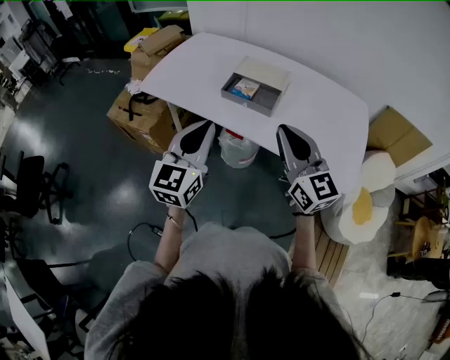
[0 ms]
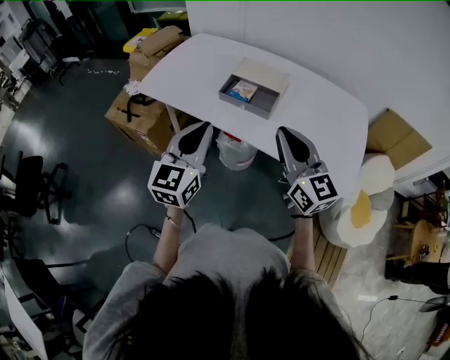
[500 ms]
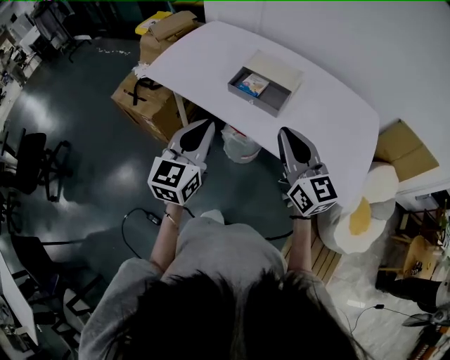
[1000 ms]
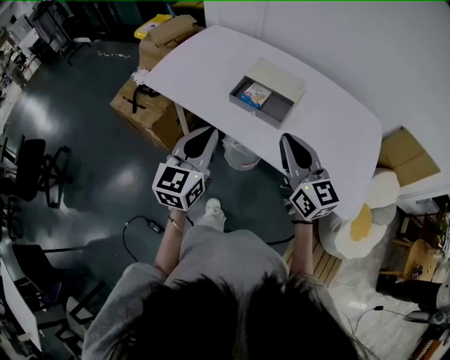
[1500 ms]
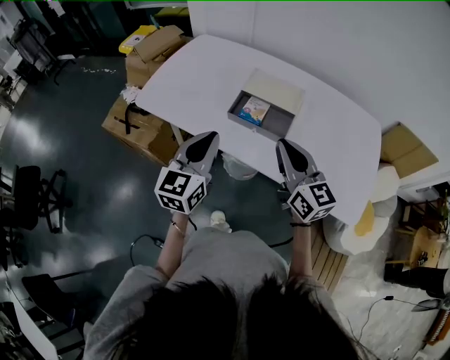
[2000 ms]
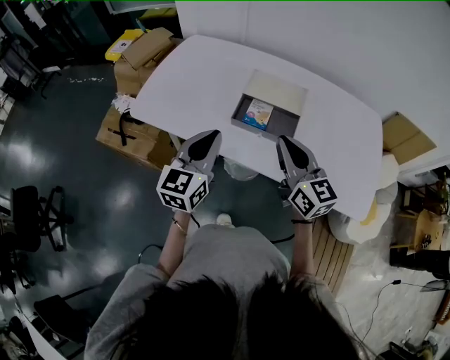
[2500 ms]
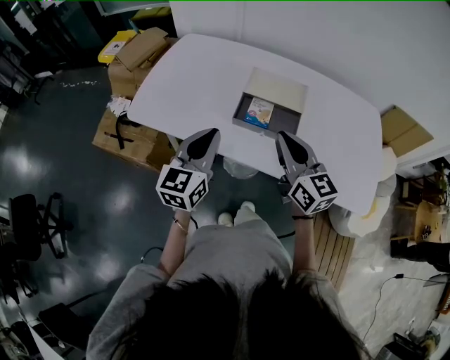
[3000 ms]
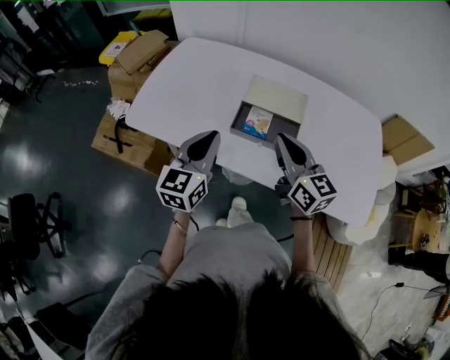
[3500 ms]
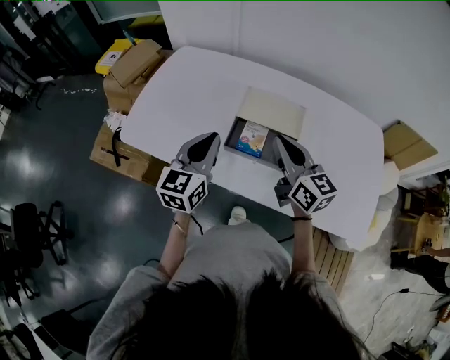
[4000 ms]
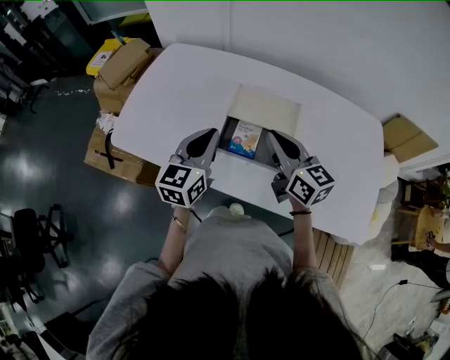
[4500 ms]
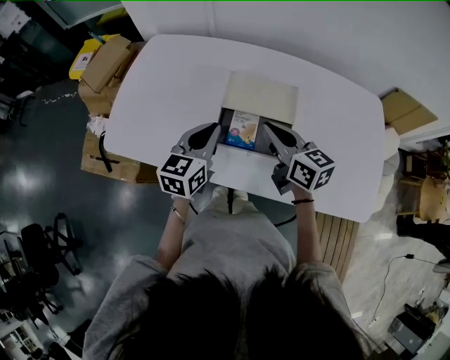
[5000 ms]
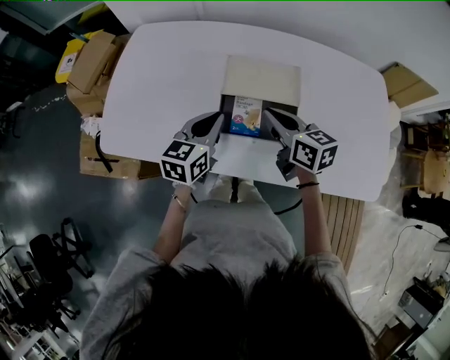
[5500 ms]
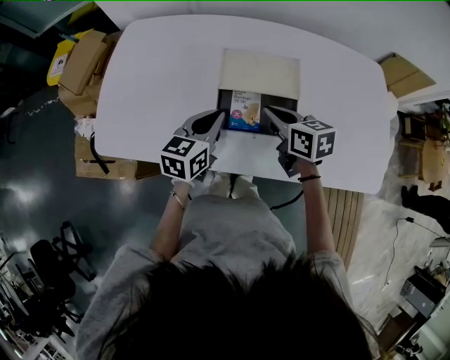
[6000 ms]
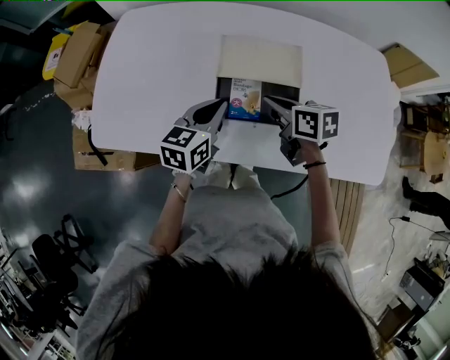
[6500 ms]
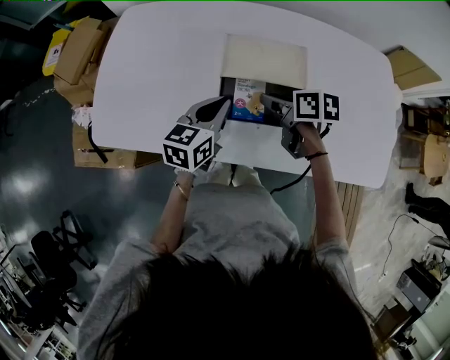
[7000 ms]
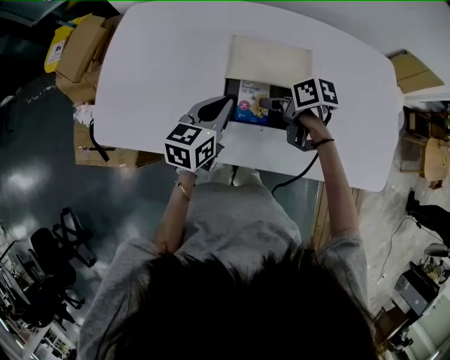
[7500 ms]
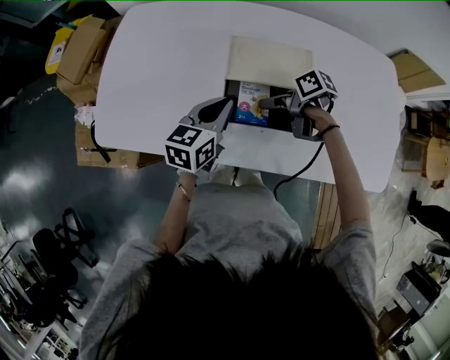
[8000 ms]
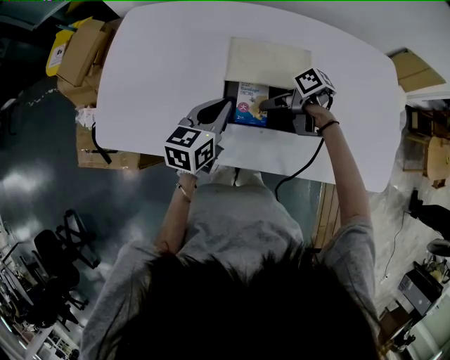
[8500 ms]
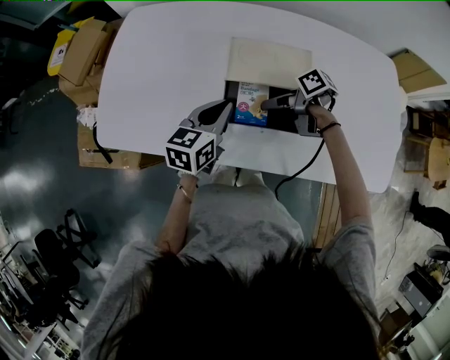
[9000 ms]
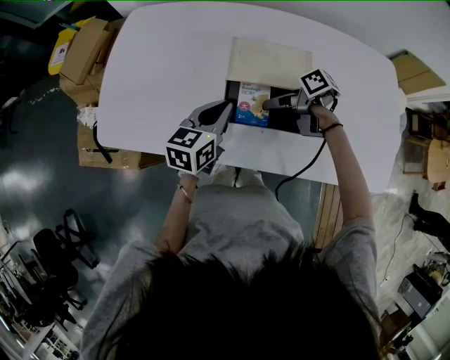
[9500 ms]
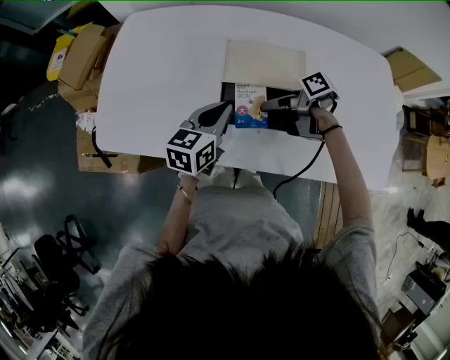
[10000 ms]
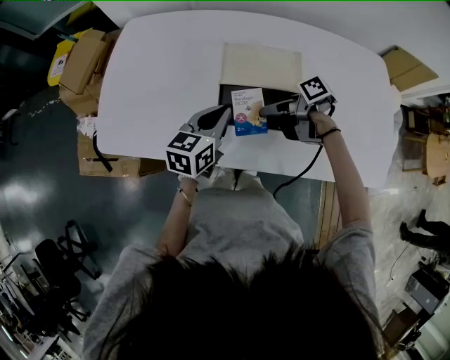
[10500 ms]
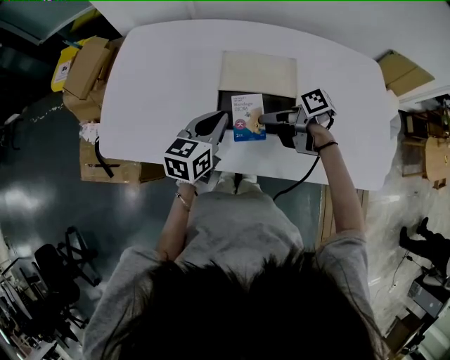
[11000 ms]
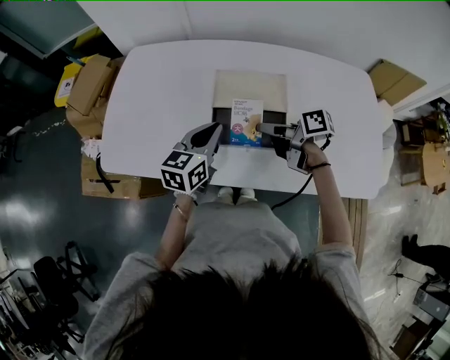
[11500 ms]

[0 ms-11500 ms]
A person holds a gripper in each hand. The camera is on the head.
0 ms to 2000 ms: Both grippers move forward, about 15 cm.
2000 ms to 4000 ms: Both grippers travel together forward, roughly 15 cm.
4000 ms to 6000 ms: The two grippers go some 15 cm downward and forward. The left gripper turns by approximately 30 degrees; the right gripper swivels approximately 30 degrees.
6000 ms to 7500 ms: The right gripper shifts some 5 cm downward, rotates approximately 40 degrees, and opens its fingers.
7500 ms to 9500 ms: The right gripper rotates roughly 20 degrees, and closes up.
9500 ms to 11500 ms: The right gripper shifts some 5 cm upward, and turns by roughly 30 degrees.

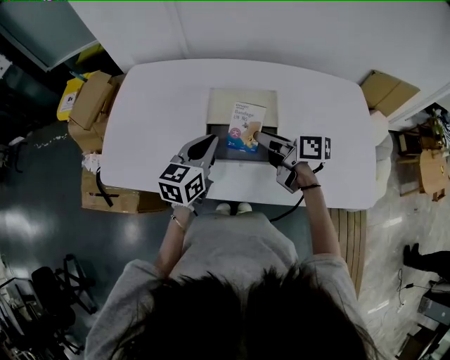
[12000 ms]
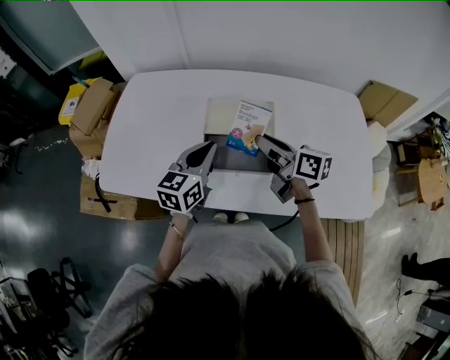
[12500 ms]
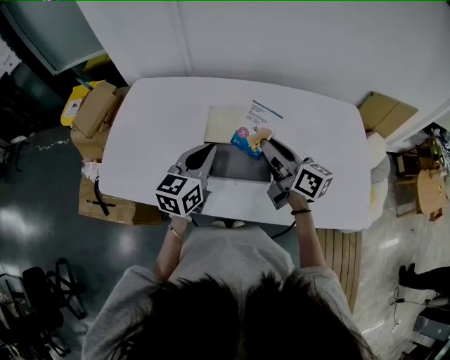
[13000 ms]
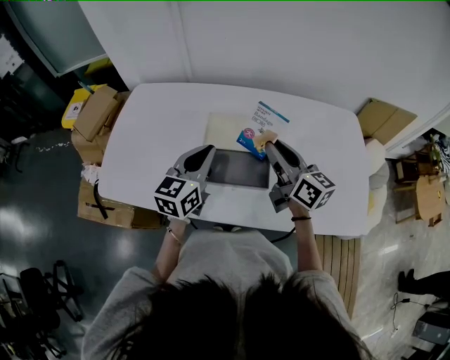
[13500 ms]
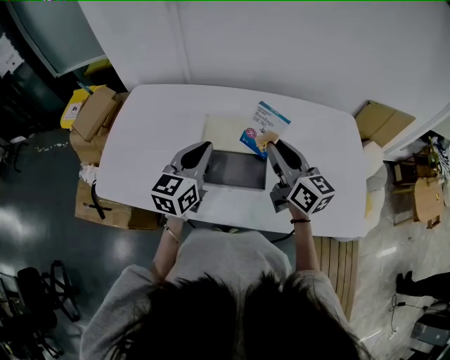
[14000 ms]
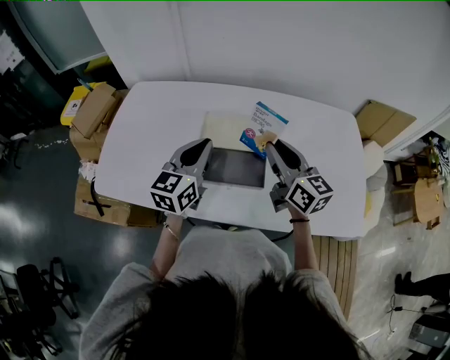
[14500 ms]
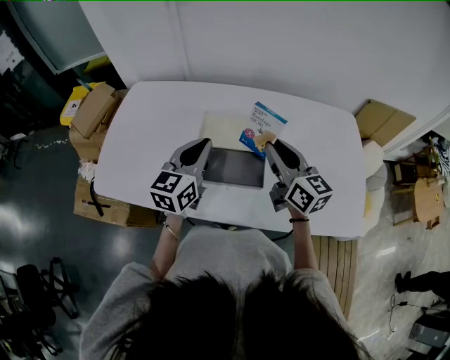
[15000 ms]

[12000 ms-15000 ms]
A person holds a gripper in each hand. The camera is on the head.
12000 ms to 13500 ms: The left gripper moves some 5 cm; the right gripper moves upward and to the right, roughly 10 cm, and swivels some 40 degrees.
13500 ms to 15000 ms: The grippers move only a little.

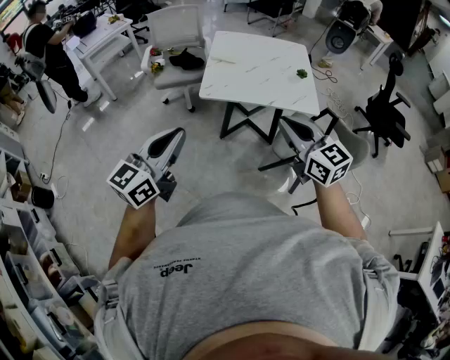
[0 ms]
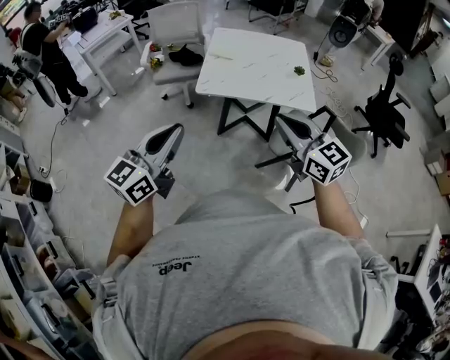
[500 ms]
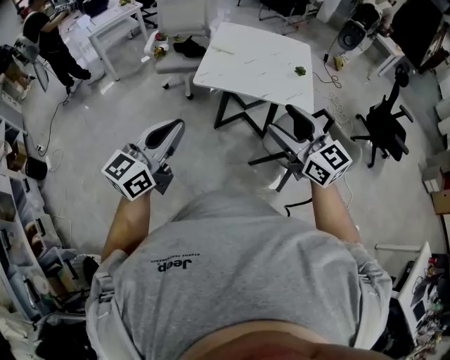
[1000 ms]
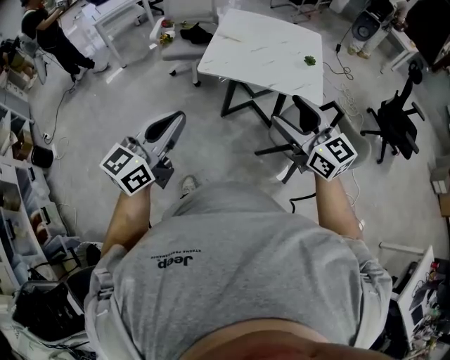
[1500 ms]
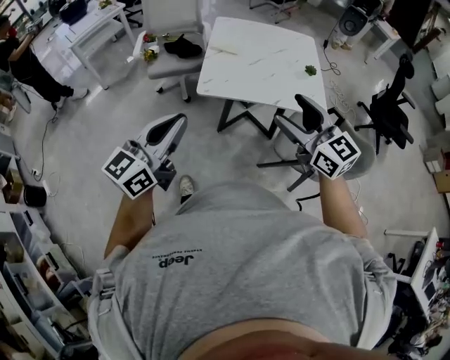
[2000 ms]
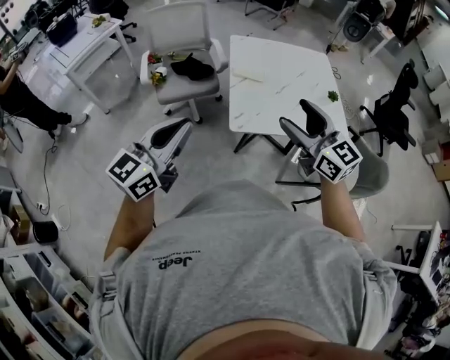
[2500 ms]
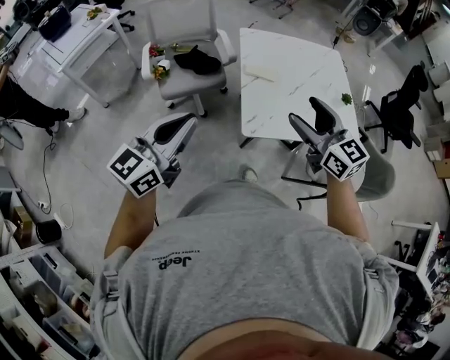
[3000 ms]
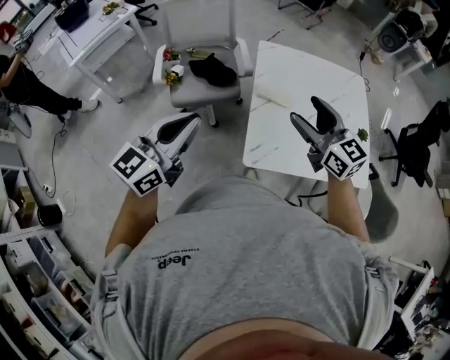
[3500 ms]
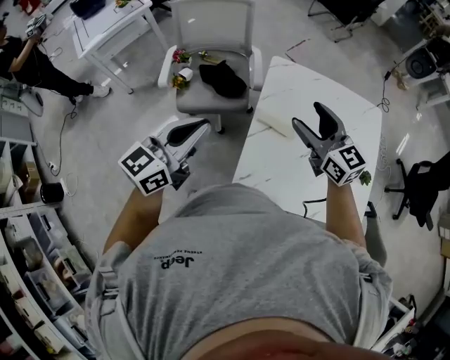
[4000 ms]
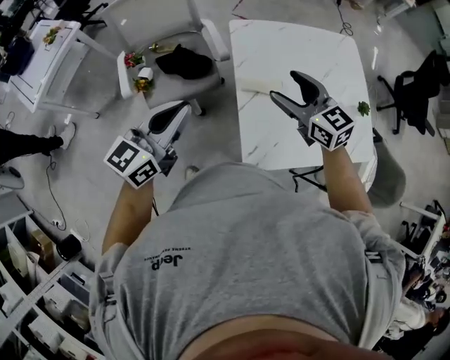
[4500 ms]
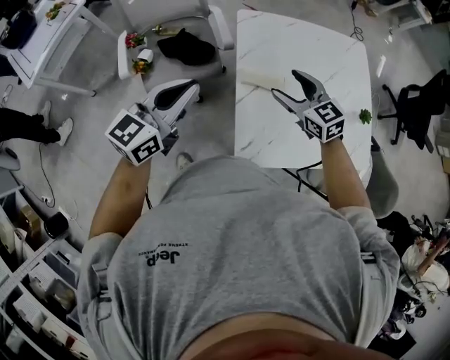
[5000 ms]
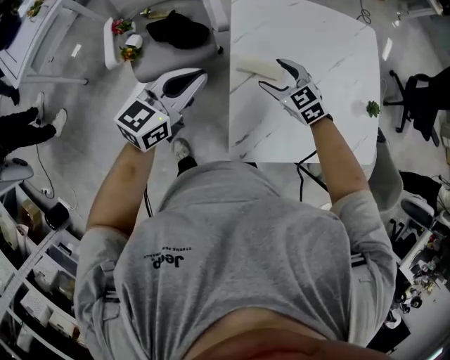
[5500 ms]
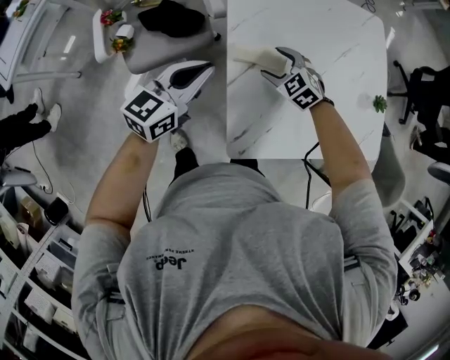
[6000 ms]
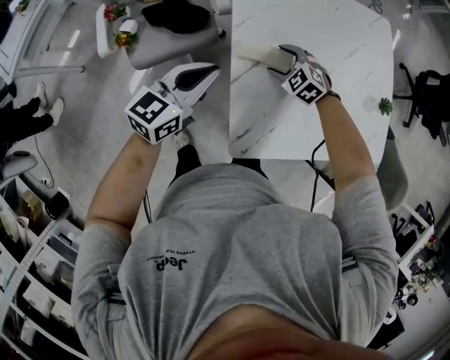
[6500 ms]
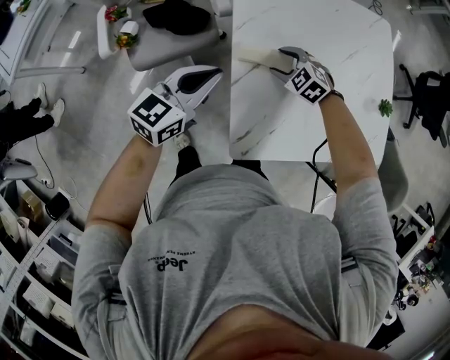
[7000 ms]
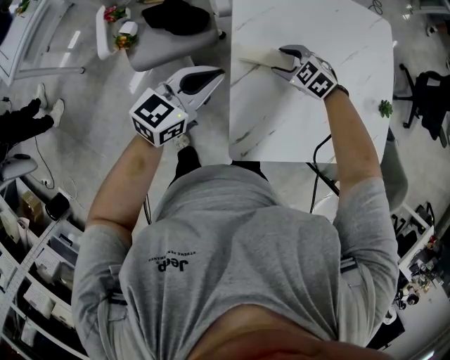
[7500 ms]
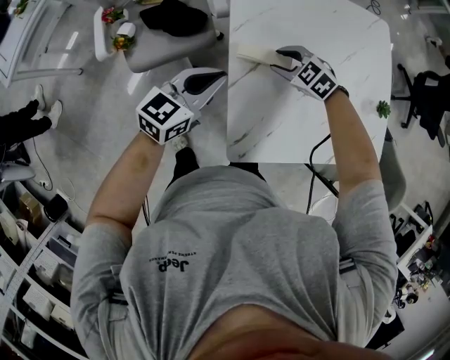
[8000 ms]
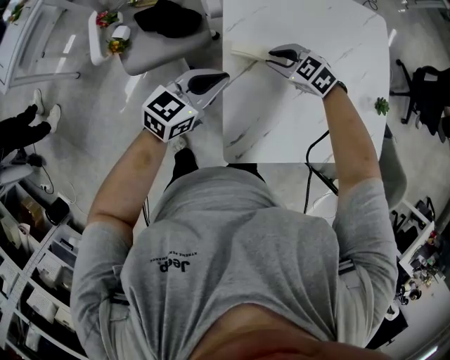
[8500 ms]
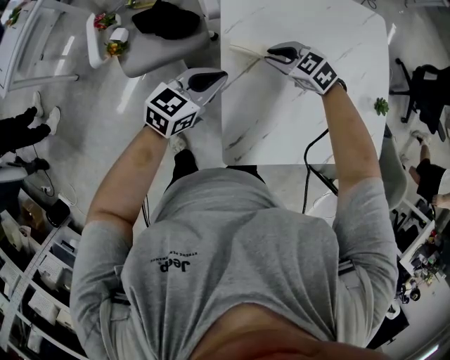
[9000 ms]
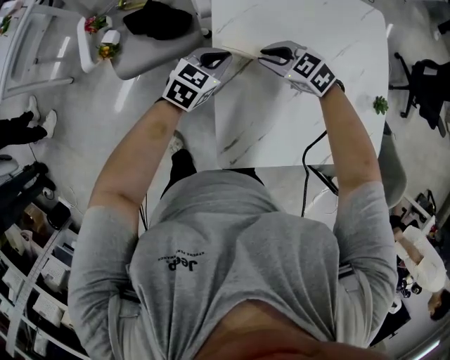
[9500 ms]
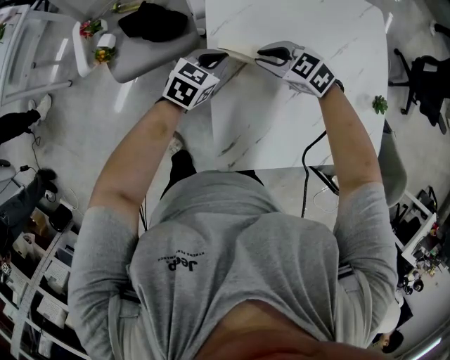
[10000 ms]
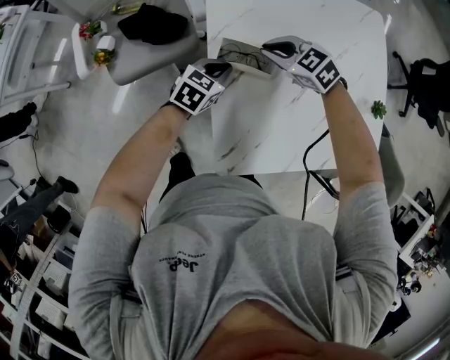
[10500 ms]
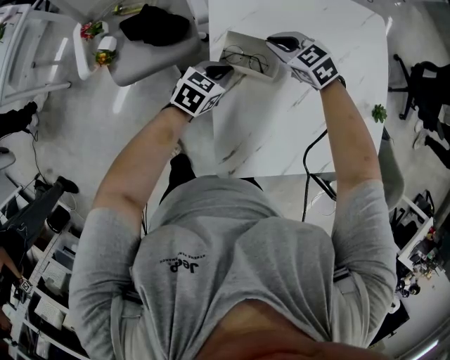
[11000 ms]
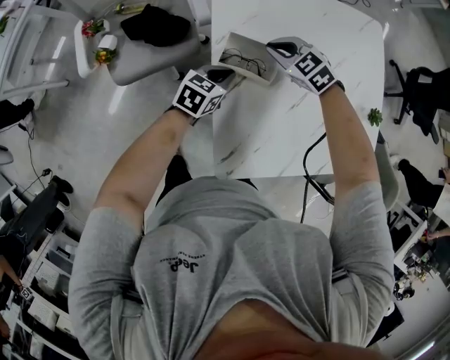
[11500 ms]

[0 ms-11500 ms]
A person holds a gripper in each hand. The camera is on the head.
0 ms to 2000 ms: The grippers both shift forward by approximately 10 cm. The right gripper opens.
2000 ms to 4000 ms: Both grippers are carried forward, approximately 50 cm.
4000 ms to 6000 ms: The left gripper goes roughly 25 cm downward and forward, and rotates roughly 20 degrees; the right gripper is displaced downward by some 35 cm, and tilts its fingers roughly 40 degrees downward.
6000 ms to 7500 ms: The grippers stay close to where they were, moving slightly.
7500 ms to 9500 ms: The left gripper heads downward, to the right and forward, covering approximately 15 cm, and swivels about 20 degrees, while the right gripper closes.
9500 ms to 11500 ms: The right gripper is displaced forward by some 5 cm. The left gripper moves roughly 5 cm.

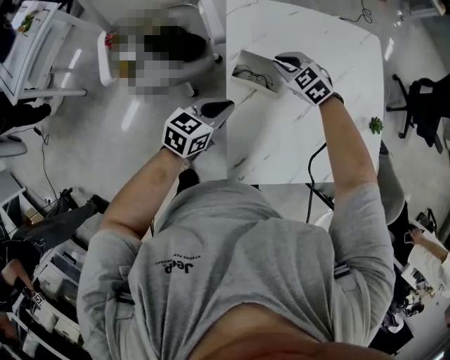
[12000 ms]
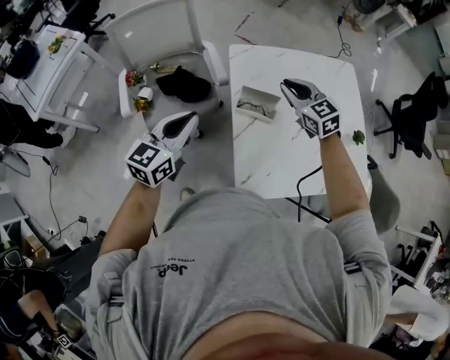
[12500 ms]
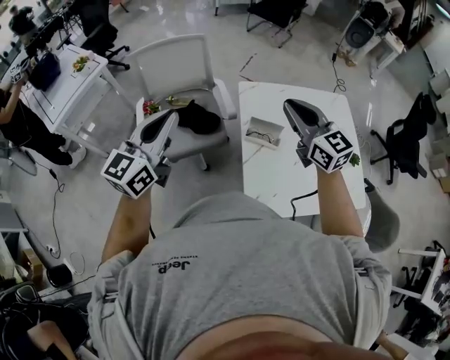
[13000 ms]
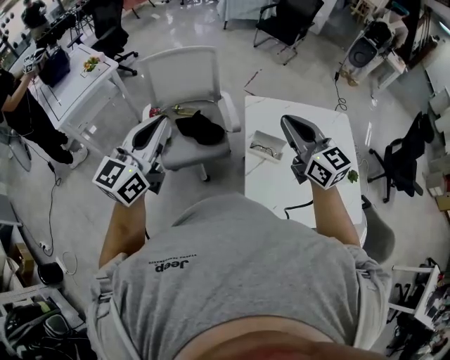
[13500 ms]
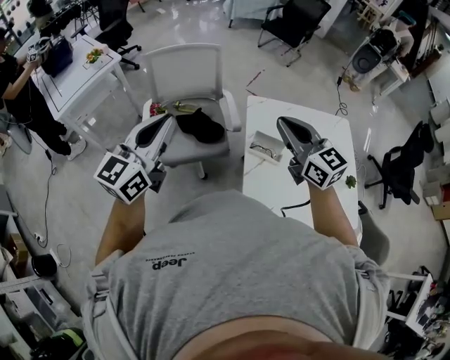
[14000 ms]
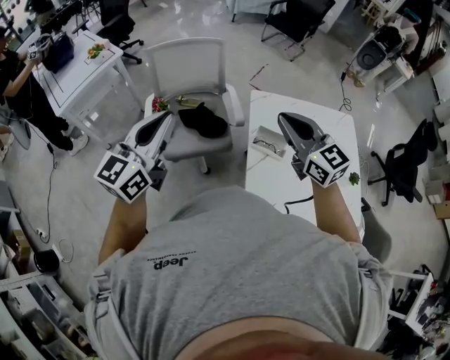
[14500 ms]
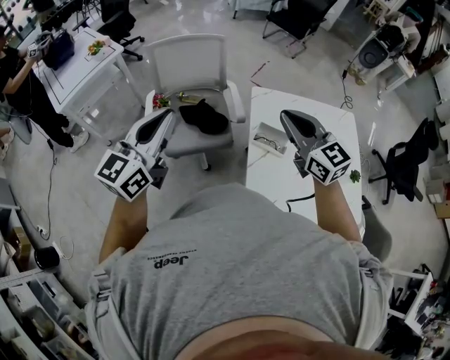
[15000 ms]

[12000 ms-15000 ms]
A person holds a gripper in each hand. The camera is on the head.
12000 ms to 13500 ms: The left gripper goes roughly 50 cm upward and to the left, and angles its fingers upward, by about 30 degrees, while the right gripper heads upward, covering roughly 40 cm, and tilts its fingers approximately 50 degrees upward.
13500 ms to 15000 ms: The grippers make only small movements.
